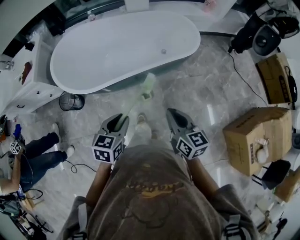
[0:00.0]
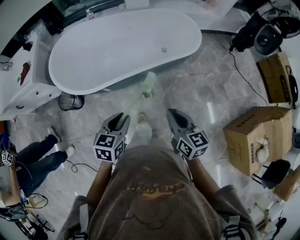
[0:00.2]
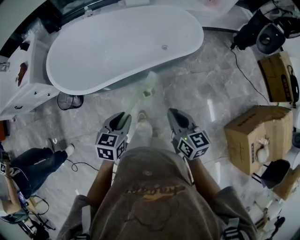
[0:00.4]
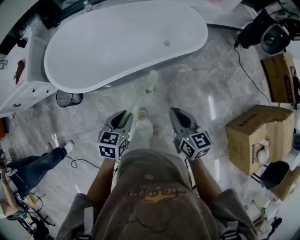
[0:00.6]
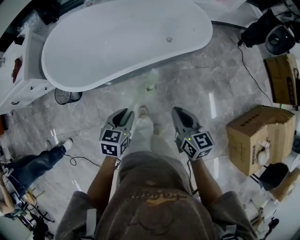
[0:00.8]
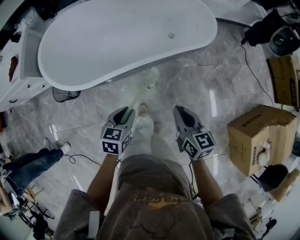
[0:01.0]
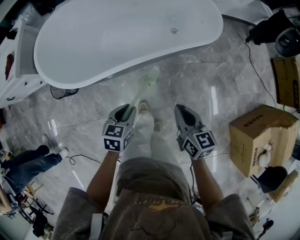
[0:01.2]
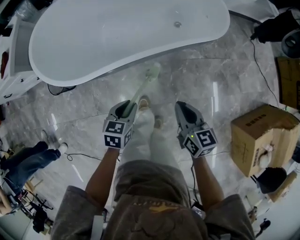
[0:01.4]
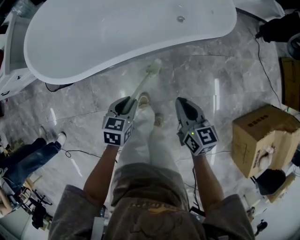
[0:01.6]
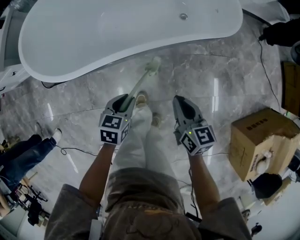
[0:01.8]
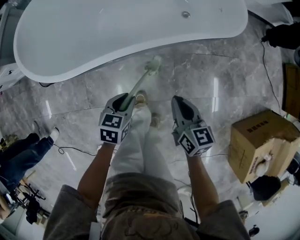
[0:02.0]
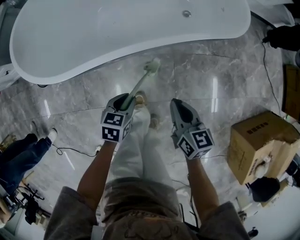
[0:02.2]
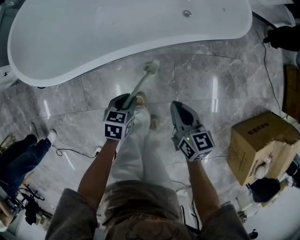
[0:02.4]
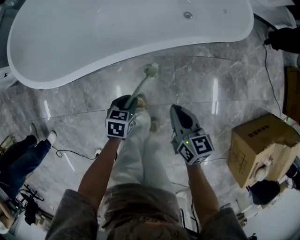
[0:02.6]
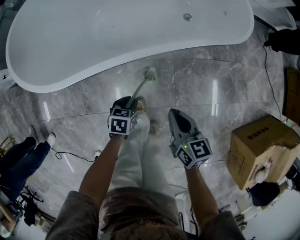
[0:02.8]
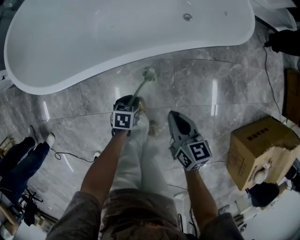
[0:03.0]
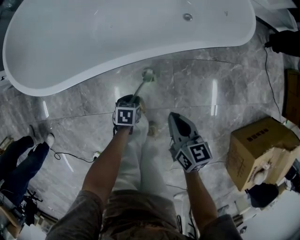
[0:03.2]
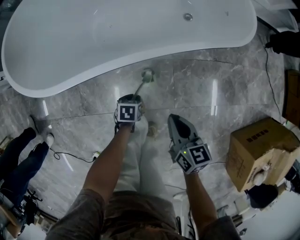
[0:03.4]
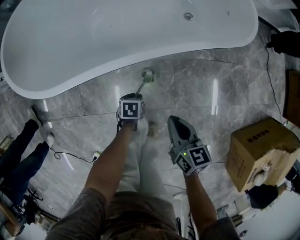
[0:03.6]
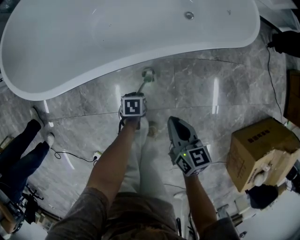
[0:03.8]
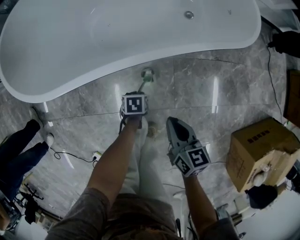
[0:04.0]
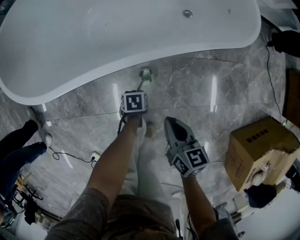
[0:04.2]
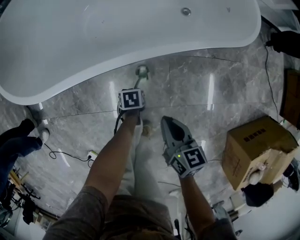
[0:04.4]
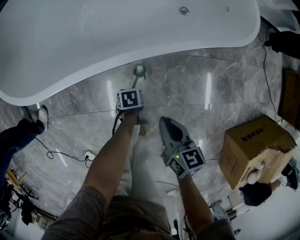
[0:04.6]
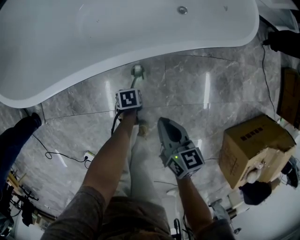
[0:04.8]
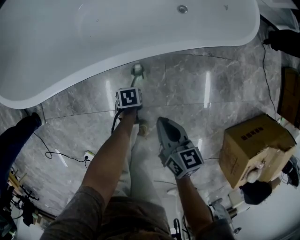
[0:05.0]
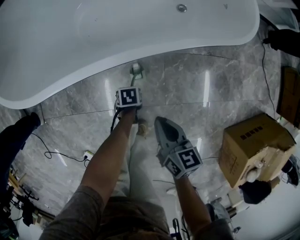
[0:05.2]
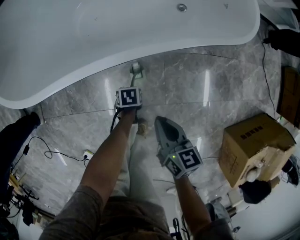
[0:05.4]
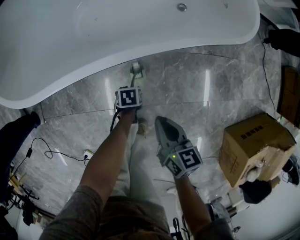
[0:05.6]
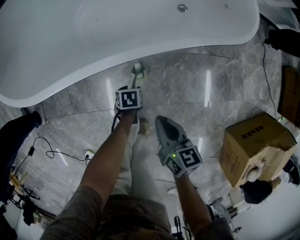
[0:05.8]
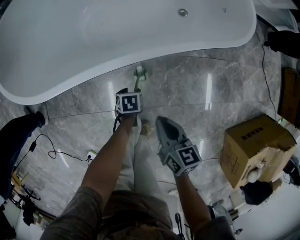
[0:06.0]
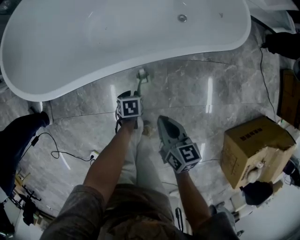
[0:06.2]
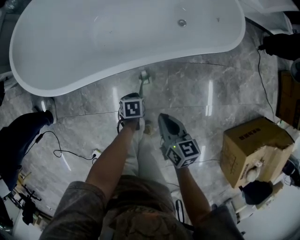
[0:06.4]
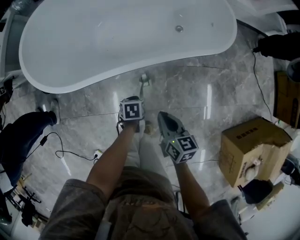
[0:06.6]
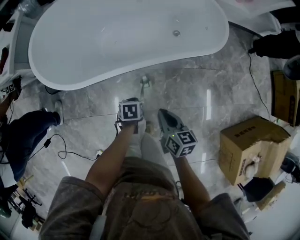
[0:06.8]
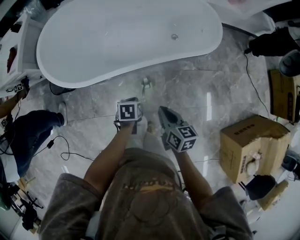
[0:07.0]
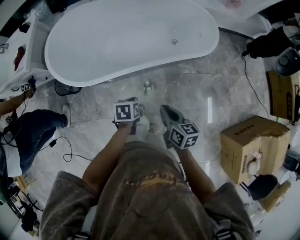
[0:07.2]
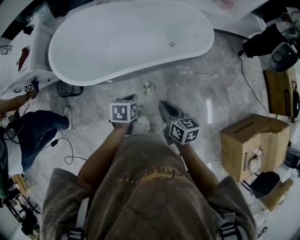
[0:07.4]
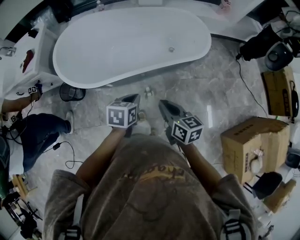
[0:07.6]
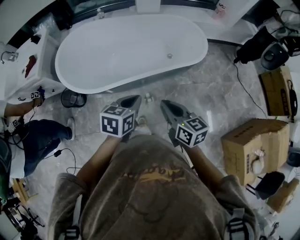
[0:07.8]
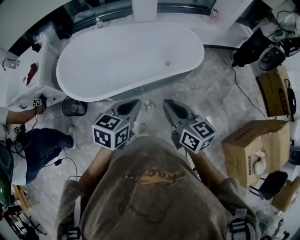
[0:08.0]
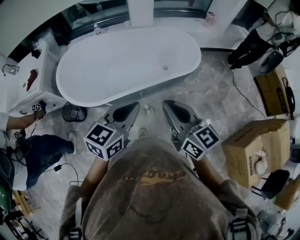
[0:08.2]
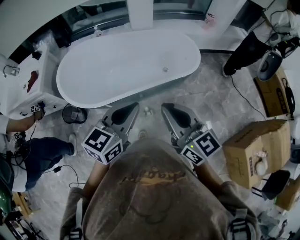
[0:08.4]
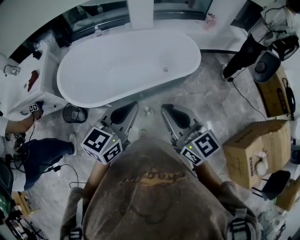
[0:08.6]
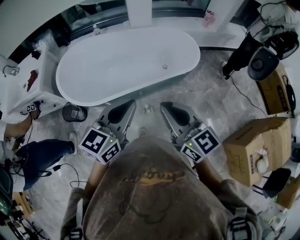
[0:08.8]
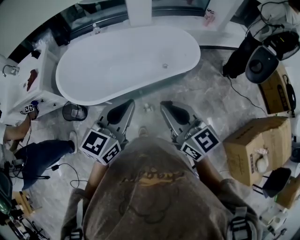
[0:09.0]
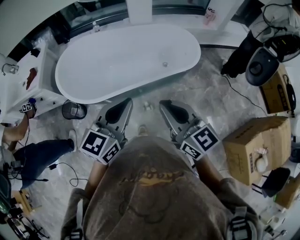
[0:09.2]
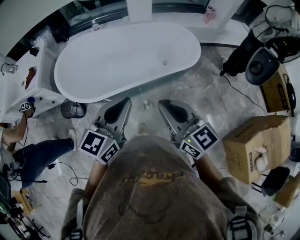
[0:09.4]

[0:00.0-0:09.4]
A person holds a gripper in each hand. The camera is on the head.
0.0 to 1.6 s: The right gripper shifts approximately 25 cm downward and forward, while the left gripper heads downward, covering some 25 cm.
1.6 to 3.2 s: The left gripper goes roughly 25 cm downward, and changes its angle by approximately 20 degrees. Meanwhile the right gripper goes about 10 cm downward.
3.2 to 4.8 s: The left gripper goes approximately 10 cm downward, and rotates approximately 20 degrees.
4.8 to 6.2 s: The left gripper heads upward, covering about 10 cm, and opens, then closes again.
6.2 to 7.8 s: The right gripper heads upward, covering approximately 35 cm. The left gripper travels upward by about 50 cm, tips its fingers upward by roughly 30 degrees, and closes up.
7.8 to 9.4 s: Both grippers travel together upward, some 15 cm. The right gripper changes its angle by roughly 20 degrees, while the left gripper tips its fingers upward by approximately 30 degrees.

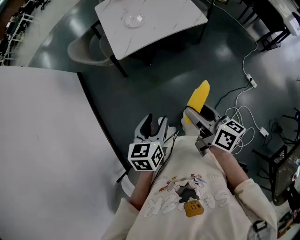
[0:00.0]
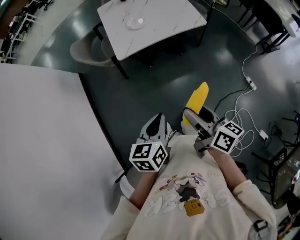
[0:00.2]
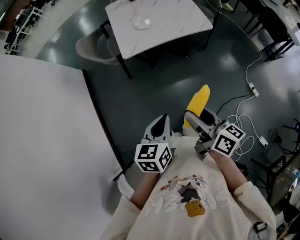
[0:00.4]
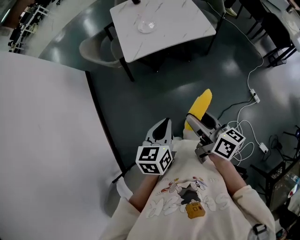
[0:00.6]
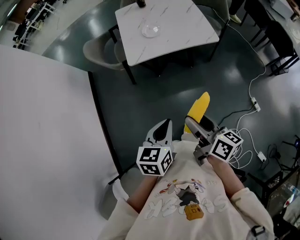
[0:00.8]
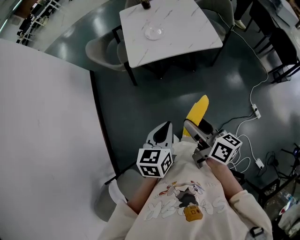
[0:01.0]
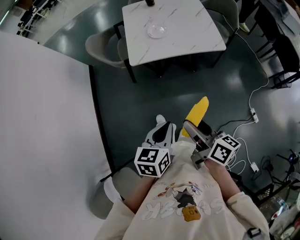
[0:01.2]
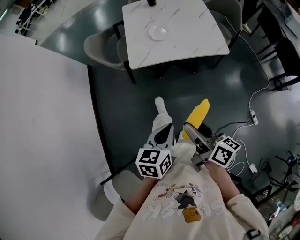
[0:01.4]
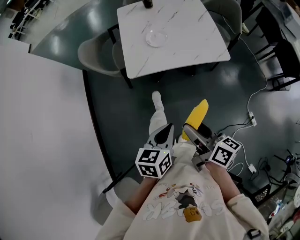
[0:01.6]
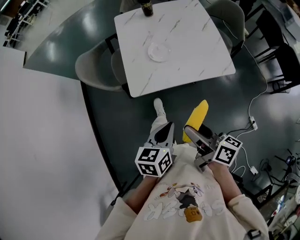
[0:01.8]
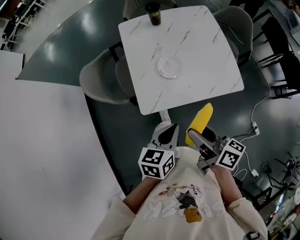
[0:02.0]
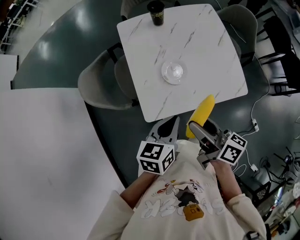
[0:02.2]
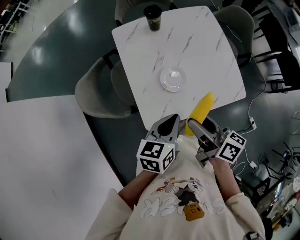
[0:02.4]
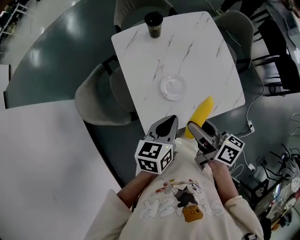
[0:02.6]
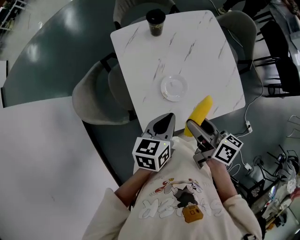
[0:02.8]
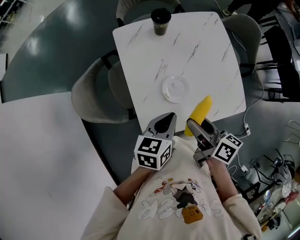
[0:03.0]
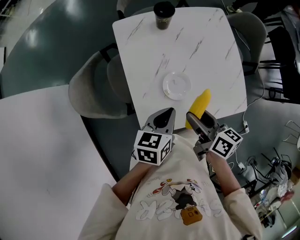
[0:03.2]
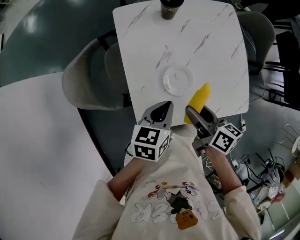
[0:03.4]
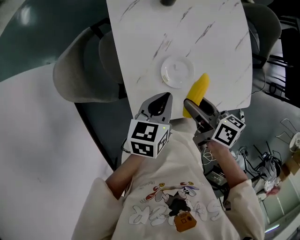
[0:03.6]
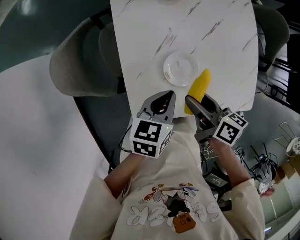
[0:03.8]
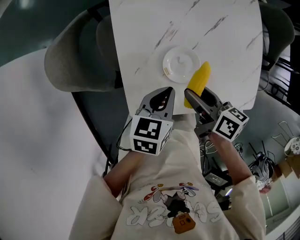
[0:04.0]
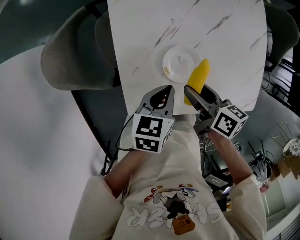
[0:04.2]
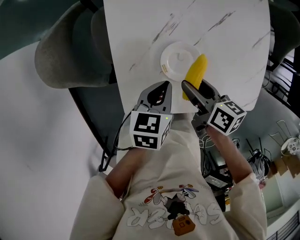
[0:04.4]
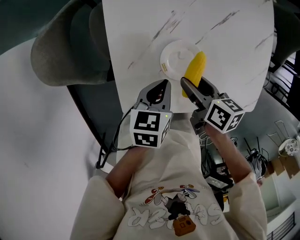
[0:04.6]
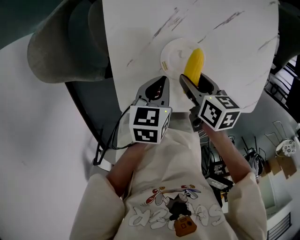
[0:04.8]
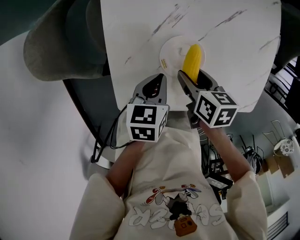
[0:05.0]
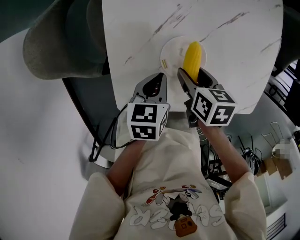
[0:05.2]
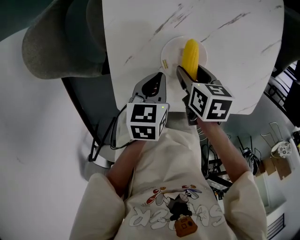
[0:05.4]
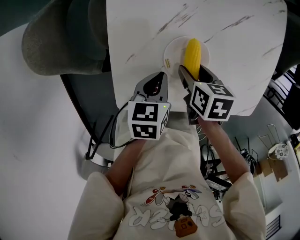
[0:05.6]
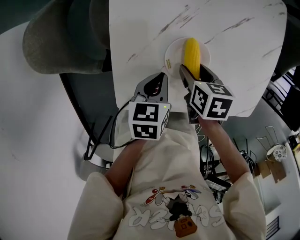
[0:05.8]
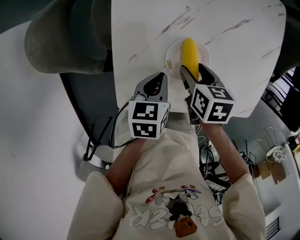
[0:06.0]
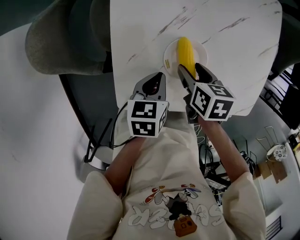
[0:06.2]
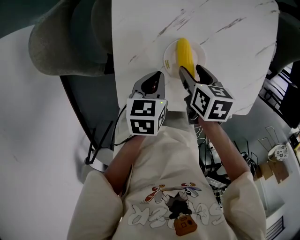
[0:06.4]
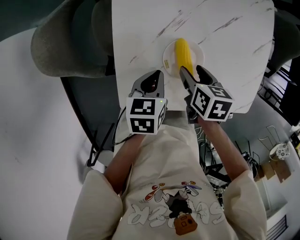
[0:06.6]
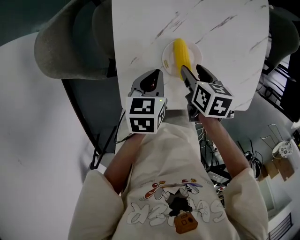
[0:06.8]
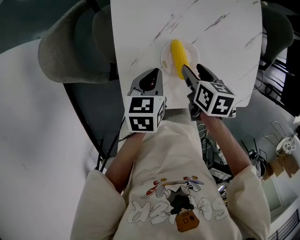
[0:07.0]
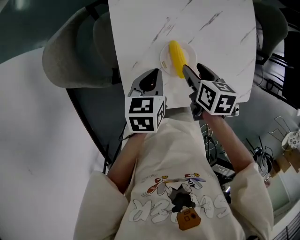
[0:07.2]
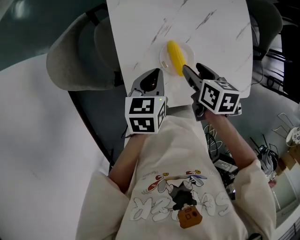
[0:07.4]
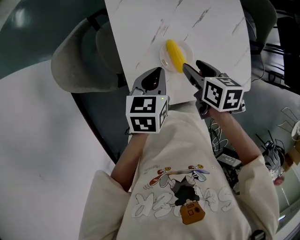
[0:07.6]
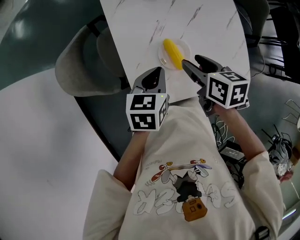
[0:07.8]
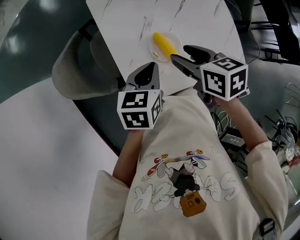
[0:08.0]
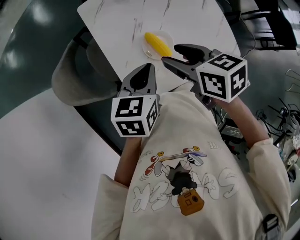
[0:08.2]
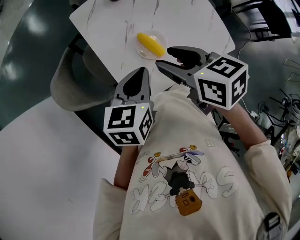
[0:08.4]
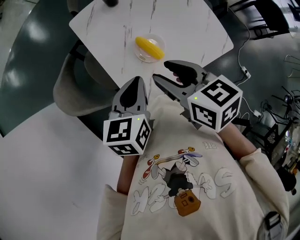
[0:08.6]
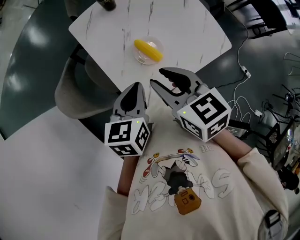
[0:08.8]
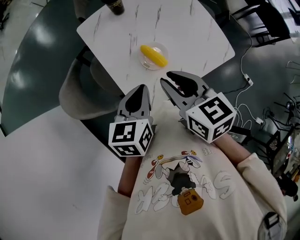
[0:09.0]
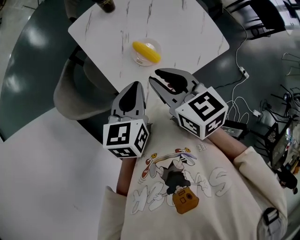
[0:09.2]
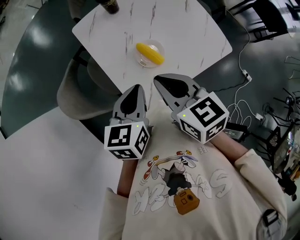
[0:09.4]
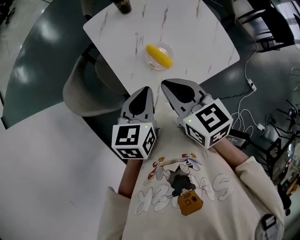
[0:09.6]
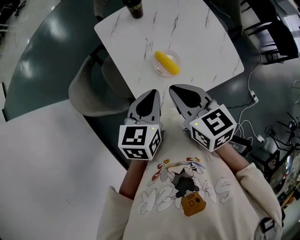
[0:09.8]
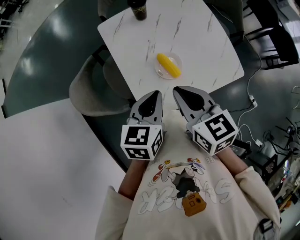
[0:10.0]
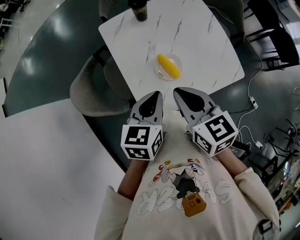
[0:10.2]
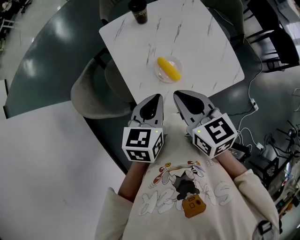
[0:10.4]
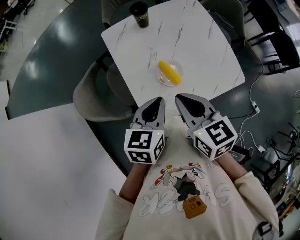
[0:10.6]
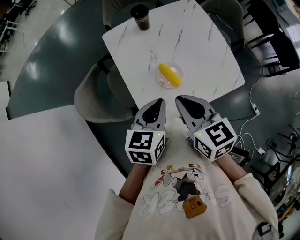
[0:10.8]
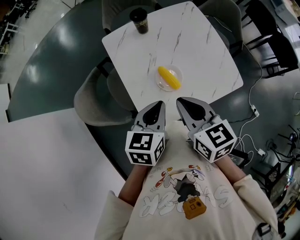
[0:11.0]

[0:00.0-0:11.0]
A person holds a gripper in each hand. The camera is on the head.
0.0 to 1.6 s: The right gripper moves forward, roughly 10 cm, while the left gripper shifts some 15 cm forward and to the right, and closes up.
1.6 to 3.2 s: Both grippers are carried forward, roughly 50 cm.
3.2 to 4.8 s: The grippers both shift downward by approximately 20 cm. The right gripper swivels some 30 degrees. The left gripper changes its angle by some 20 degrees.
4.8 to 6.2 s: The grippers stay close to where they were, moving slightly.
6.2 to 7.8 s: Both grippers travel together upward, roughly 15 cm. The left gripper swivels approximately 20 degrees.
7.8 to 9.4 s: Both grippers move upward and backward, about 15 cm. The right gripper rotates roughly 20 degrees, and closes up.
9.4 to 11.0 s: The grippers make only small movements.

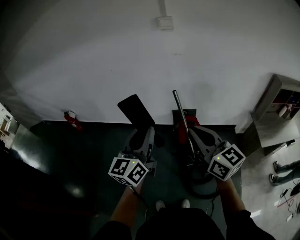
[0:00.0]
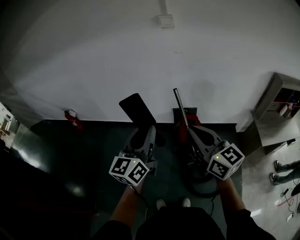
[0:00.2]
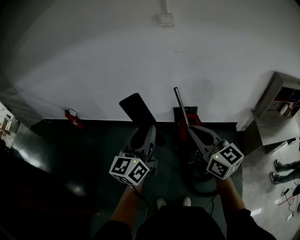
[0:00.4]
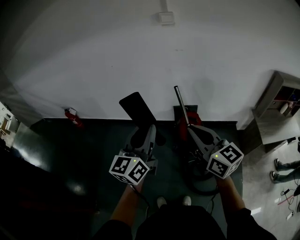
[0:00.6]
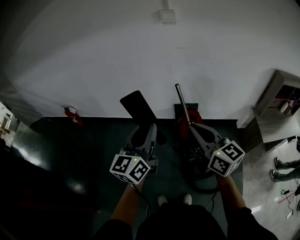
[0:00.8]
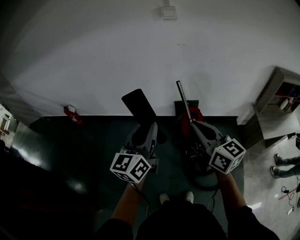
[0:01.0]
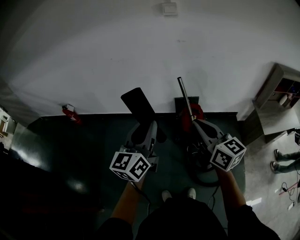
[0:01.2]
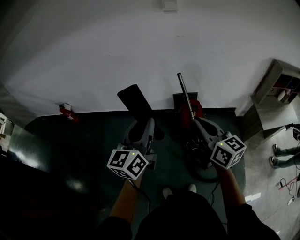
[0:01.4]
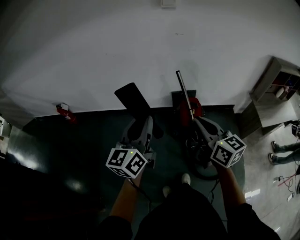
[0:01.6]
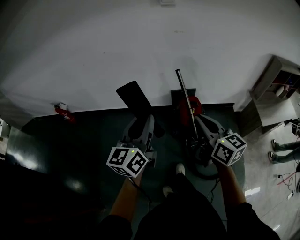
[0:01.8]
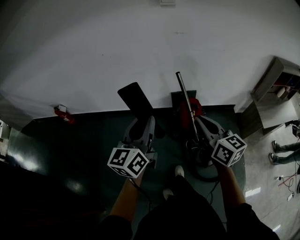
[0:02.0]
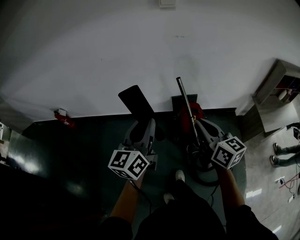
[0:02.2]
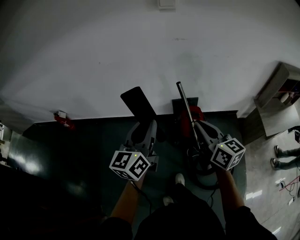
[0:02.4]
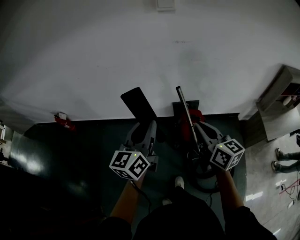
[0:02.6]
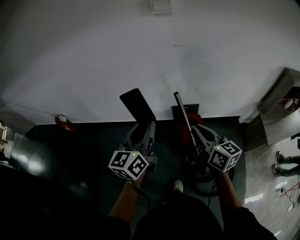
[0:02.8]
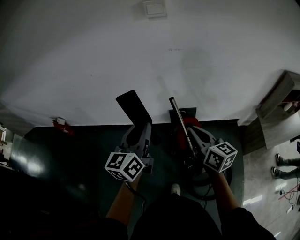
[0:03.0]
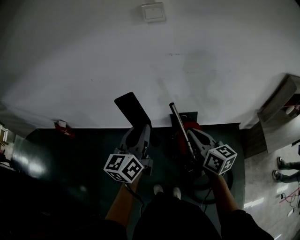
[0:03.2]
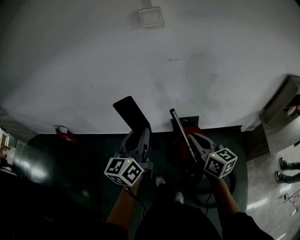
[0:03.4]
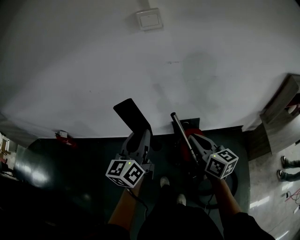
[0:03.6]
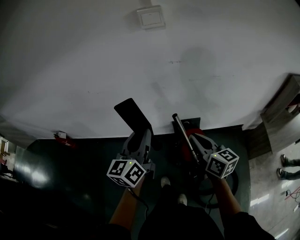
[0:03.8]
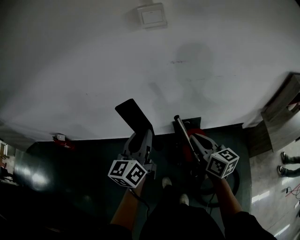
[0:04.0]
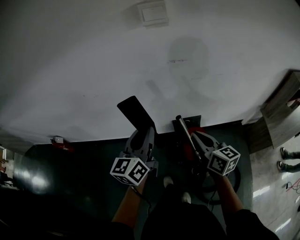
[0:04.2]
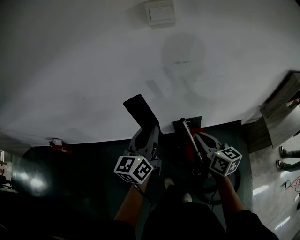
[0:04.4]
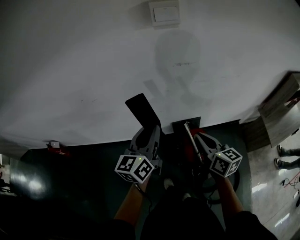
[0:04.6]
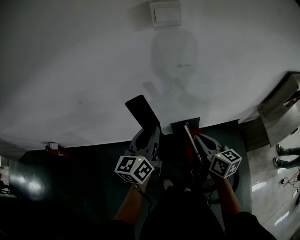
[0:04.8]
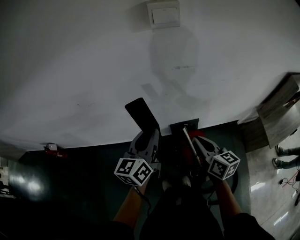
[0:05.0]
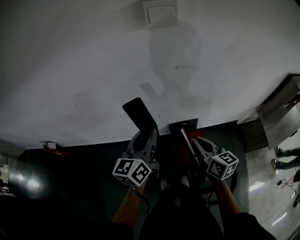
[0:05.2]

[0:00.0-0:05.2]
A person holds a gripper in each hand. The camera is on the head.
0.0 to 1.8 s: The right gripper heads downward and forward, covering approximately 10 cm; the left gripper is displaced to the left by some 5 cm.
1.8 to 3.4 s: Both grippers move forward, approximately 25 cm.
3.4 to 5.2 s: The left gripper heads forward, covering roughly 15 cm; the right gripper shifts roughly 15 cm forward and downward.
